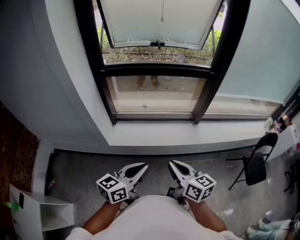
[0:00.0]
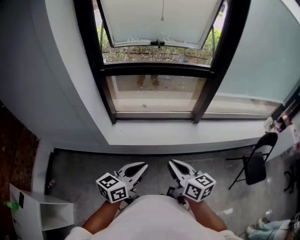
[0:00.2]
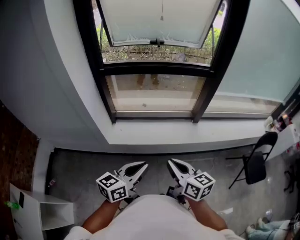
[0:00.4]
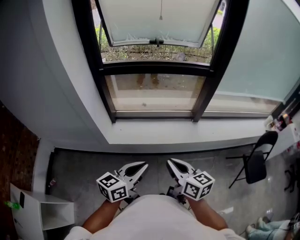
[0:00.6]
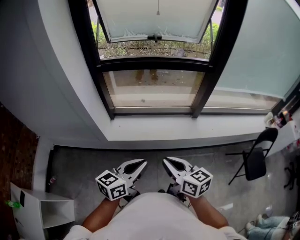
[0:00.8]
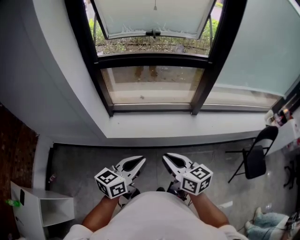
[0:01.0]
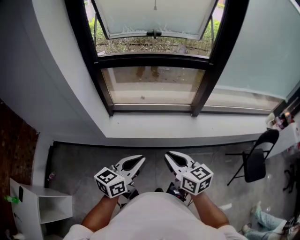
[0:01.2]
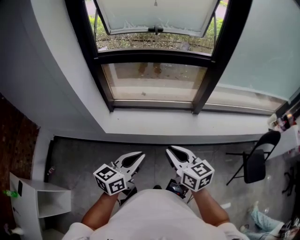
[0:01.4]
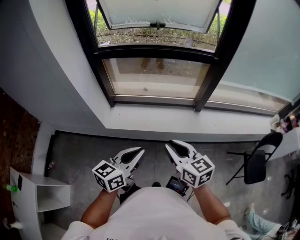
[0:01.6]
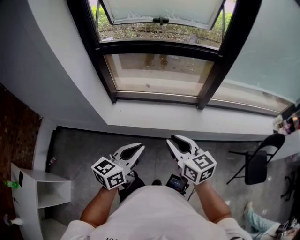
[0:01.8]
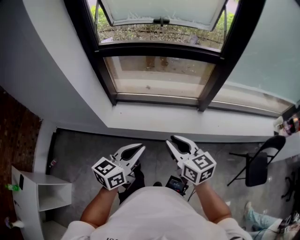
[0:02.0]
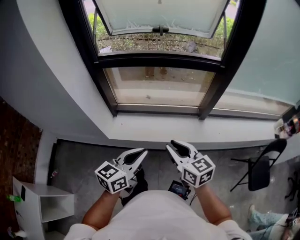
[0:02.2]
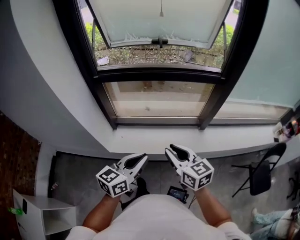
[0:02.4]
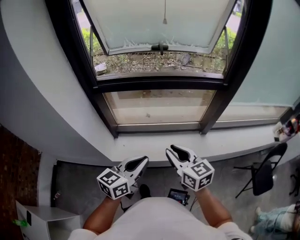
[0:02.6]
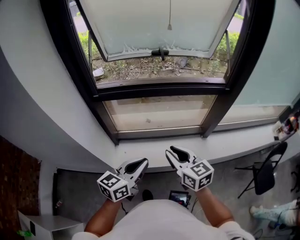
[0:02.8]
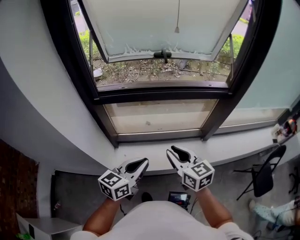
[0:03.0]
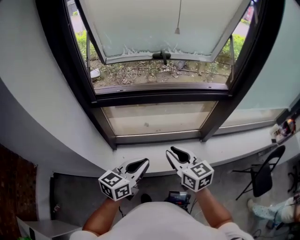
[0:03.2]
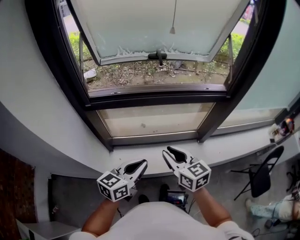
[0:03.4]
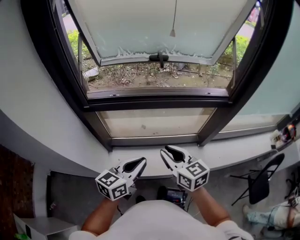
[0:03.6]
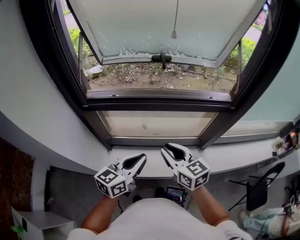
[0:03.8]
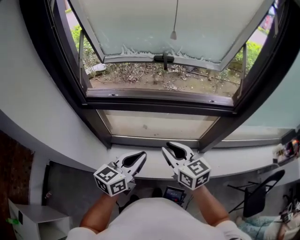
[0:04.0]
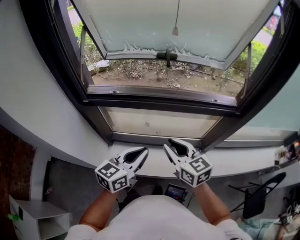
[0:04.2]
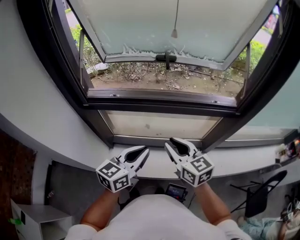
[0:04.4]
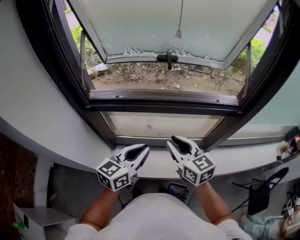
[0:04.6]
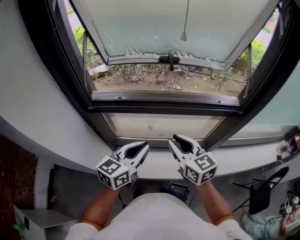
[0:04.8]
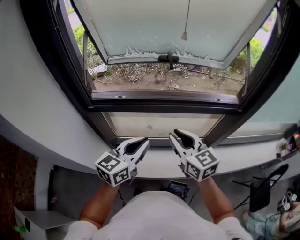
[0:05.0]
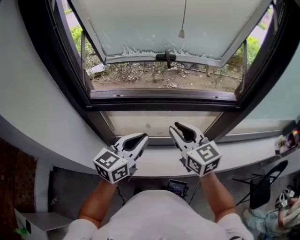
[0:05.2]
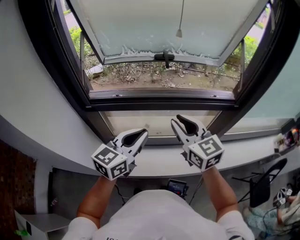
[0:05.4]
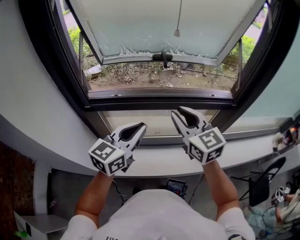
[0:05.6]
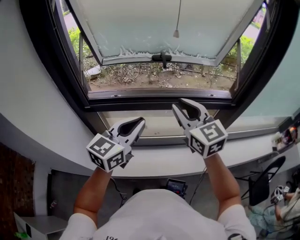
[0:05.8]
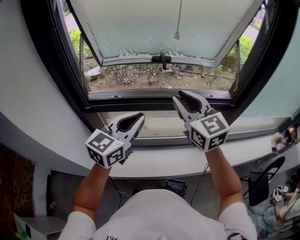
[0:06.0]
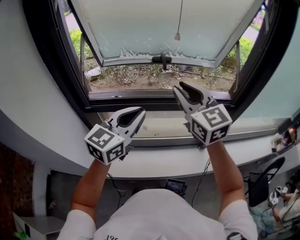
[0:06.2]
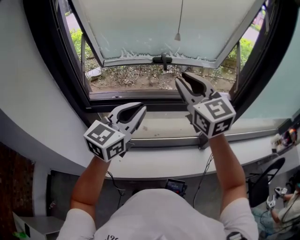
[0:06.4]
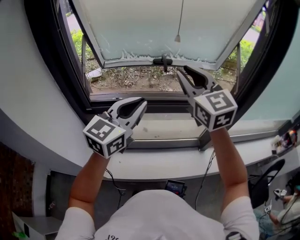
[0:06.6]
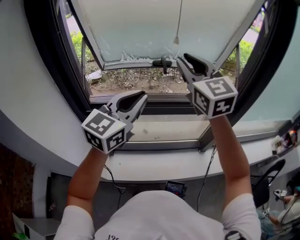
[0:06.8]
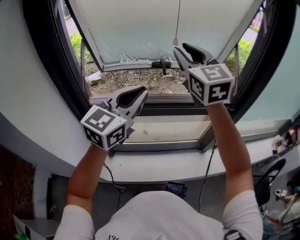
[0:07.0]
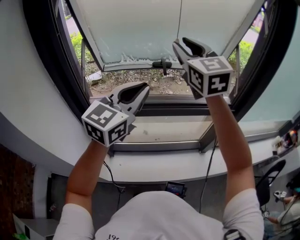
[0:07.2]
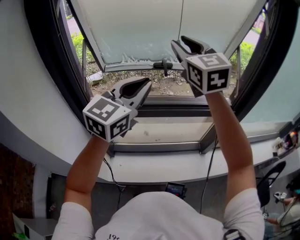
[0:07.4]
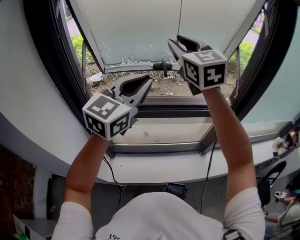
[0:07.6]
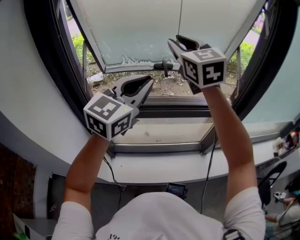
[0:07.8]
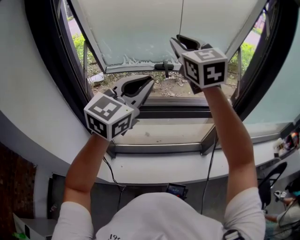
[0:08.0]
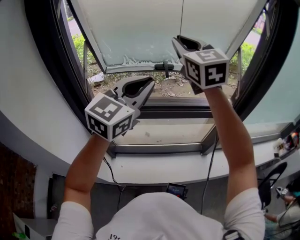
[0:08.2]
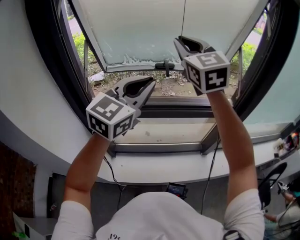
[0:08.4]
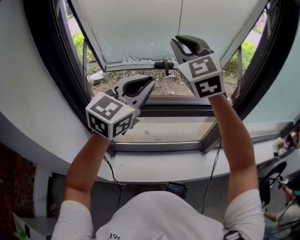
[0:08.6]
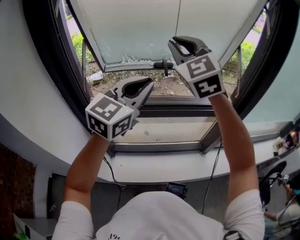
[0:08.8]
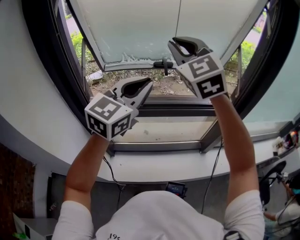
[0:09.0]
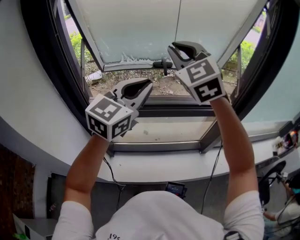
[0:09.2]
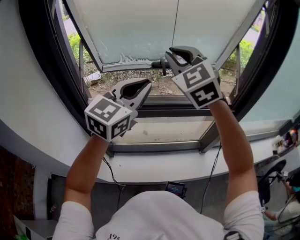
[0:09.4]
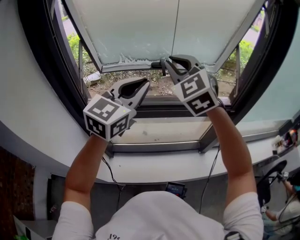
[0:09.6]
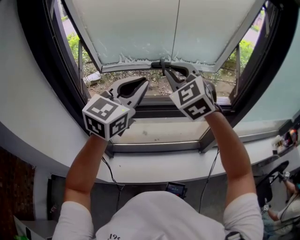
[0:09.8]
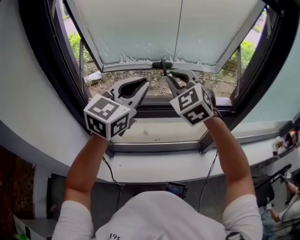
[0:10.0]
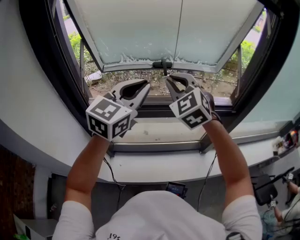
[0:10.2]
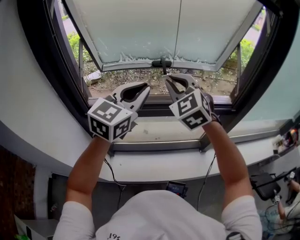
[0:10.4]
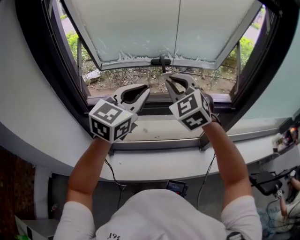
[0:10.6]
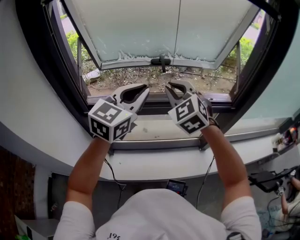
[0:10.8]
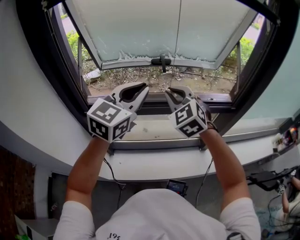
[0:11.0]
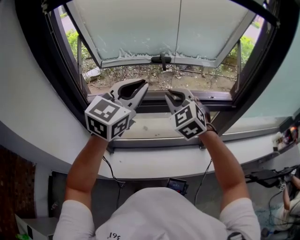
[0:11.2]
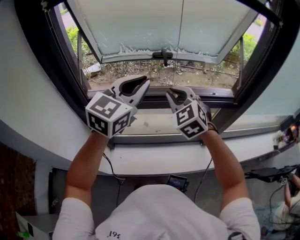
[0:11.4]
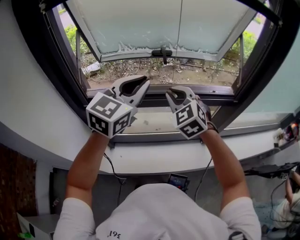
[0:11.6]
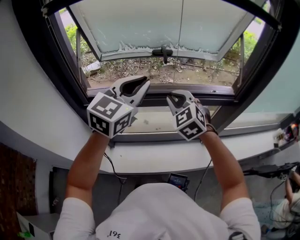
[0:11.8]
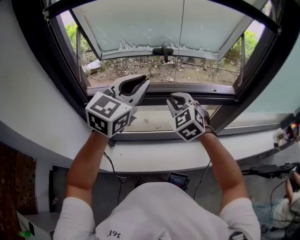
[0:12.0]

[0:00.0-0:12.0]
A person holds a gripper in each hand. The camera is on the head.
0:00.0 to 0:01.6: The left gripper shifts roughly 5 cm to the right, while the right gripper goes some 10 cm to the right and forward.
0:01.6 to 0:03.0: The two grippers go about 30 cm forward and to the left.
0:03.0 to 0:04.4: The left gripper moves forward and to the right, about 15 cm. The right gripper goes approximately 15 cm forward.
0:04.4 to 0:06.0: Both grippers move upward and forward, roughly 15 cm. The right gripper rotates approximately 20 degrees.
0:06.0 to 0:07.6: The grippers both shift upward and forward by about 20 cm.
0:07.6 to 0:09.0: The grippers move only a little.
0:09.0 to 0:10.4: The right gripper moves downward, roughly 15 cm.
0:10.4 to 0:12.0: The right gripper travels downward by some 15 cm.

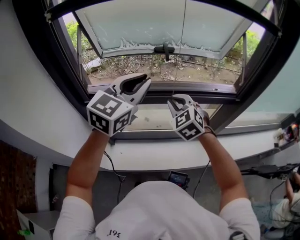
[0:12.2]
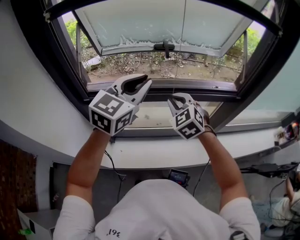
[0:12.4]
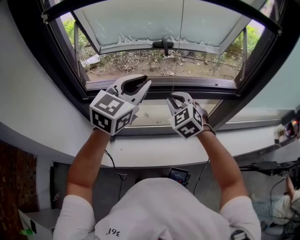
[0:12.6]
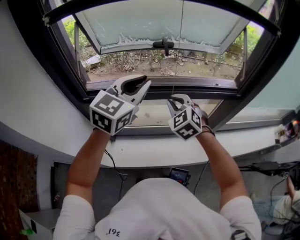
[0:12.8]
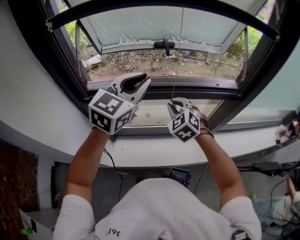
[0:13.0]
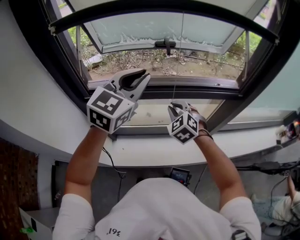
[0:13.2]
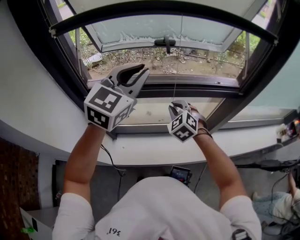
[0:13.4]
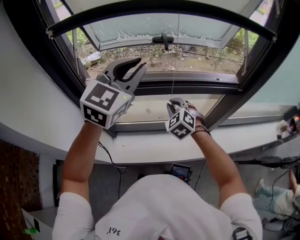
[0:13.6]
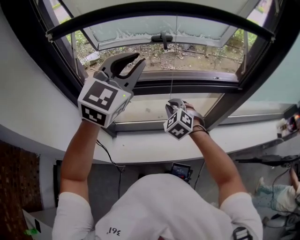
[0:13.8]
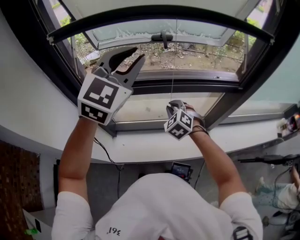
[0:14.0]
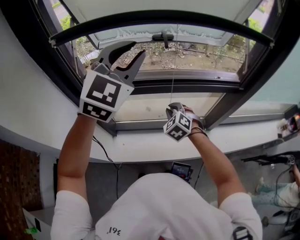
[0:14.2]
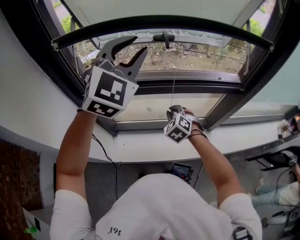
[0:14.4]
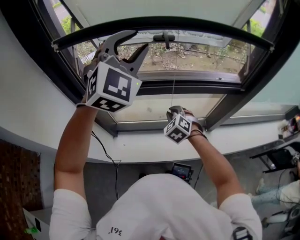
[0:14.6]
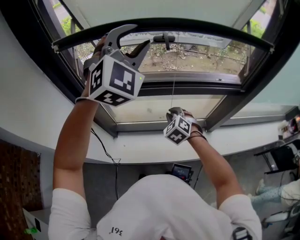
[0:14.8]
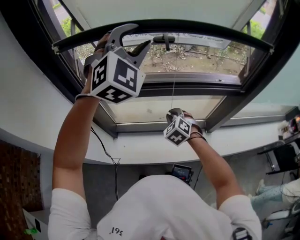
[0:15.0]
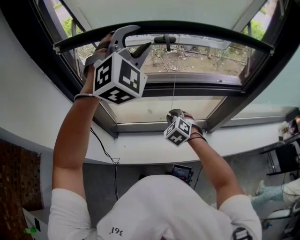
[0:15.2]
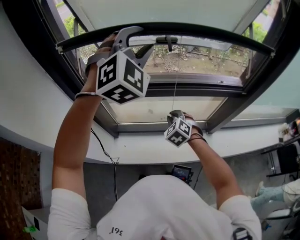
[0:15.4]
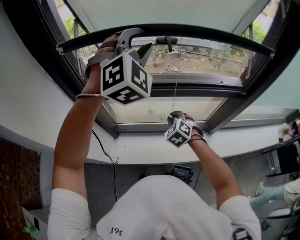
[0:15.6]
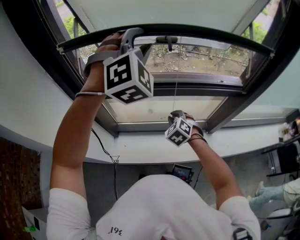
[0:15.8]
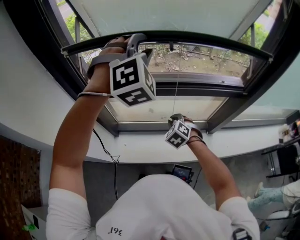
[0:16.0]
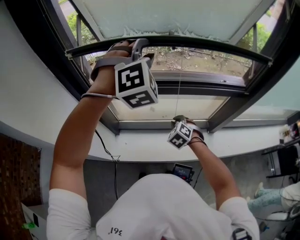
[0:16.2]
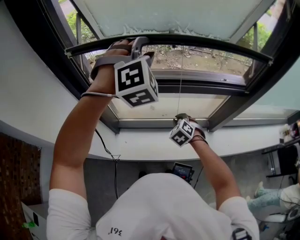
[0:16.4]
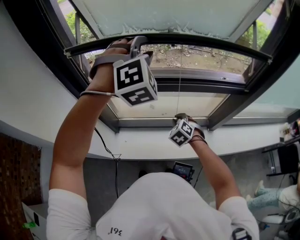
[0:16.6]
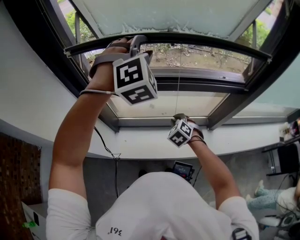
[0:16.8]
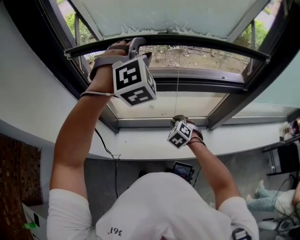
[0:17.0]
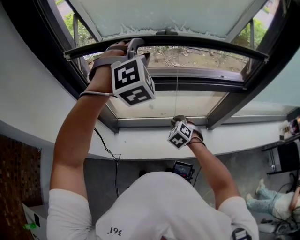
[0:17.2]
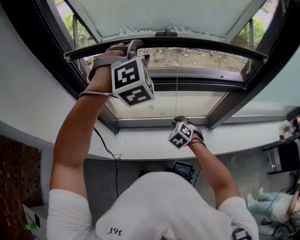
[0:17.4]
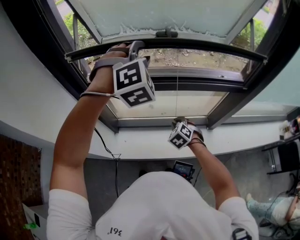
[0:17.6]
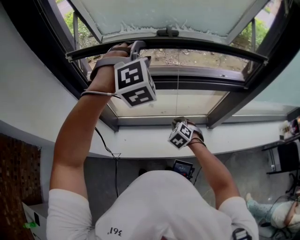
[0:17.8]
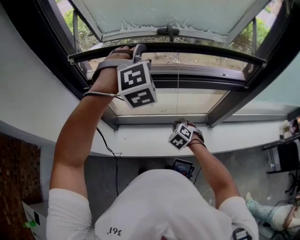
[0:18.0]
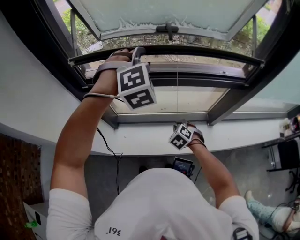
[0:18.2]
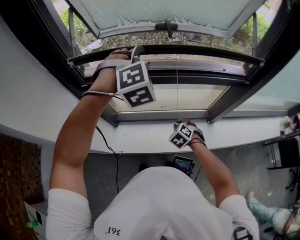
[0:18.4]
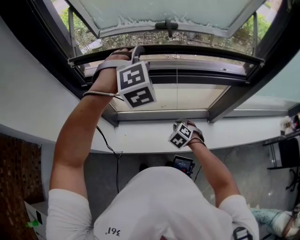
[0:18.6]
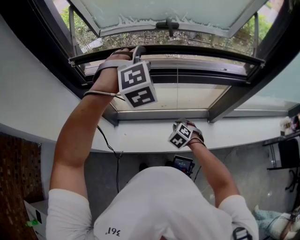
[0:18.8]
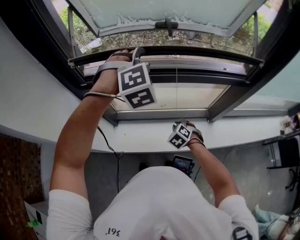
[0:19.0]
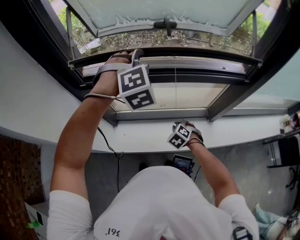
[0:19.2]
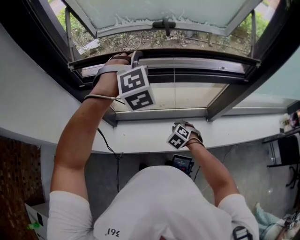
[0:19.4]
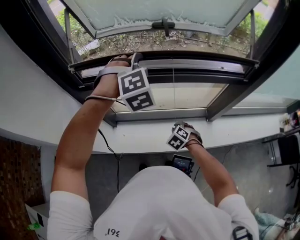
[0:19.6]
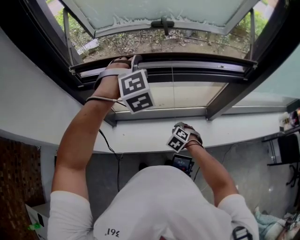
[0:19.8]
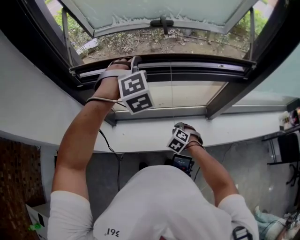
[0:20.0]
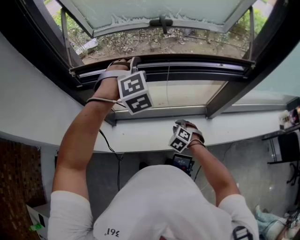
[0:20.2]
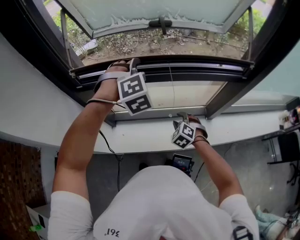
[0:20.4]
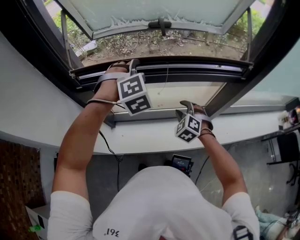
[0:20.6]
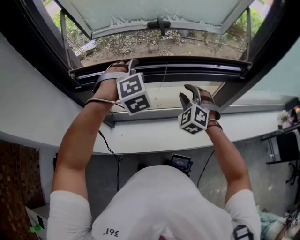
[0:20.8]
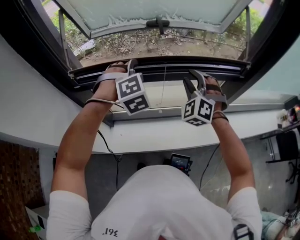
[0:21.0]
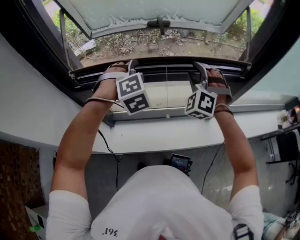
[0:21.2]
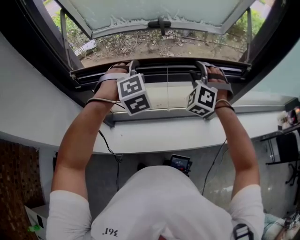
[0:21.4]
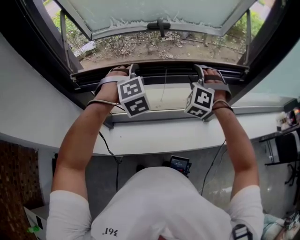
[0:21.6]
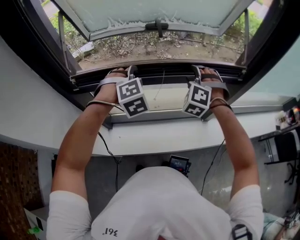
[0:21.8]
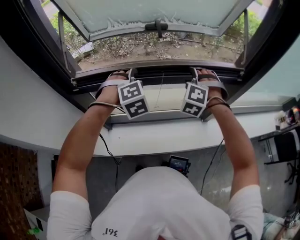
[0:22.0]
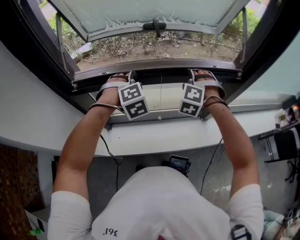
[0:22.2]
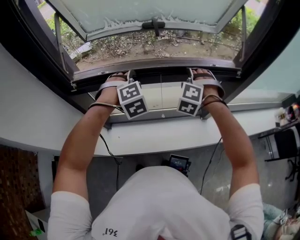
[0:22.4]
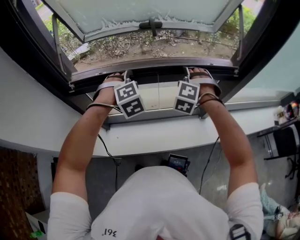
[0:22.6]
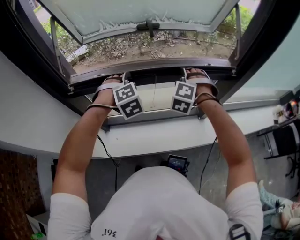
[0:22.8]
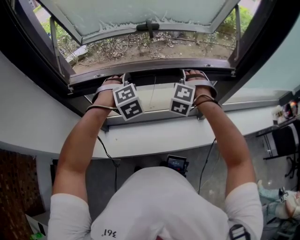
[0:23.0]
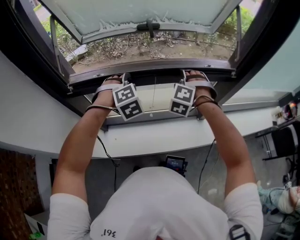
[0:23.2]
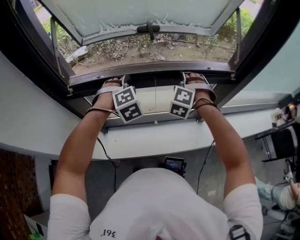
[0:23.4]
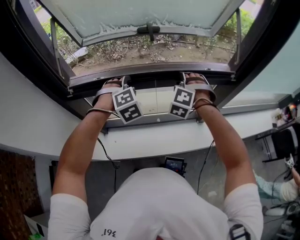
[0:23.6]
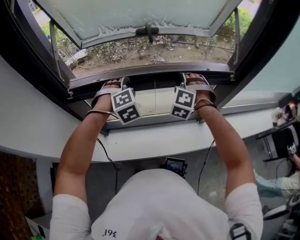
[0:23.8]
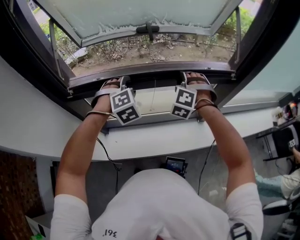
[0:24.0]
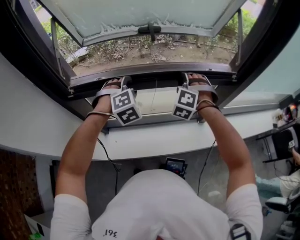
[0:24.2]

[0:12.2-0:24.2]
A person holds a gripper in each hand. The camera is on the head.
0:12.2 to 0:13.8: The right gripper heads downward, covering about 10 cm.
0:13.8 to 0:15.2: The right gripper heads downward, covering some 5 cm, while the left gripper is displaced forward by approximately 5 cm, changes its angle by approximately 40 degrees, and opens.
0:15.2 to 0:16.6: The two grippers go approximately 5 cm downward. The left gripper rotates roughly 20 degrees.
0:16.6 to 0:18.2: Both grippers move downward, about 5 cm.
0:18.2 to 0:19.8: The right gripper ends up some 5 cm from where it was. Meanwhile the left gripper shifts approximately 5 cm downward.
0:19.8 to 0:21.2: The right gripper is displaced upward and forward by roughly 35 cm, points its fingers roughly 50 degrees further upward, and opens up.
0:21.2 to 0:22.6: Both grippers travel together downward, roughly 5 cm. The right gripper swivels some 30 degrees.
0:22.6 to 0:24.2: The grippers move only a little.
